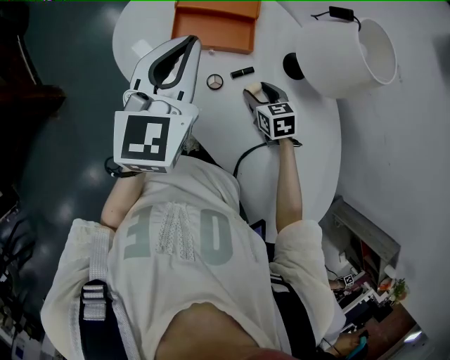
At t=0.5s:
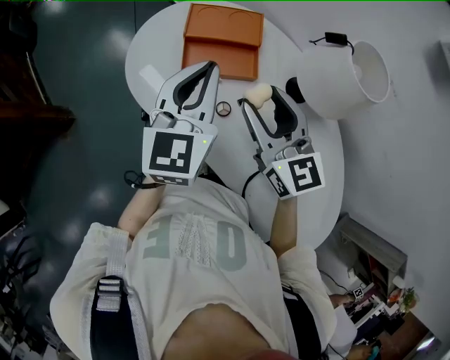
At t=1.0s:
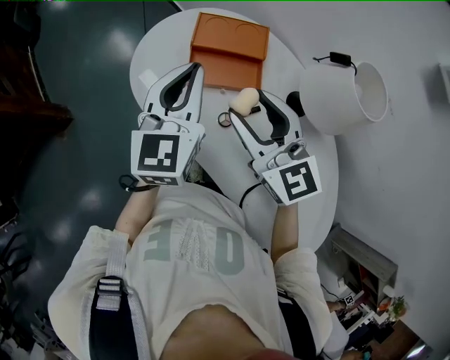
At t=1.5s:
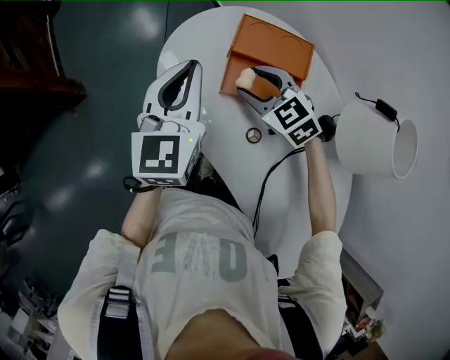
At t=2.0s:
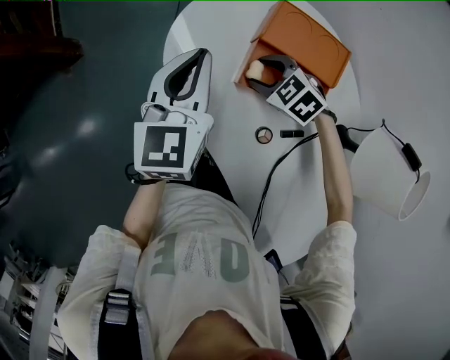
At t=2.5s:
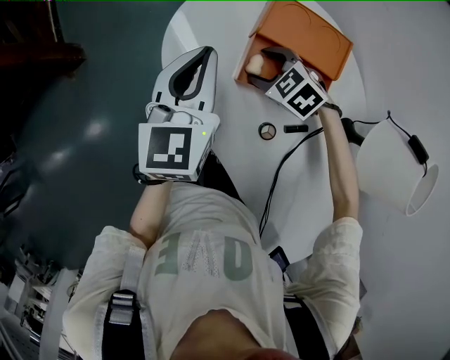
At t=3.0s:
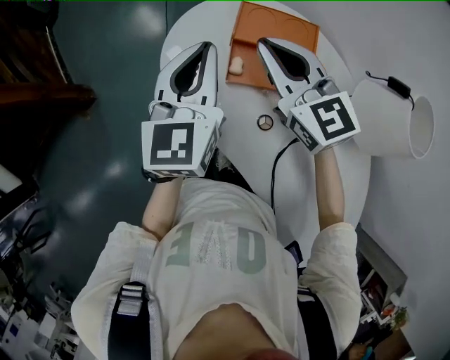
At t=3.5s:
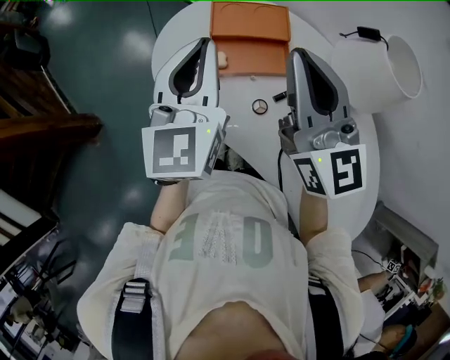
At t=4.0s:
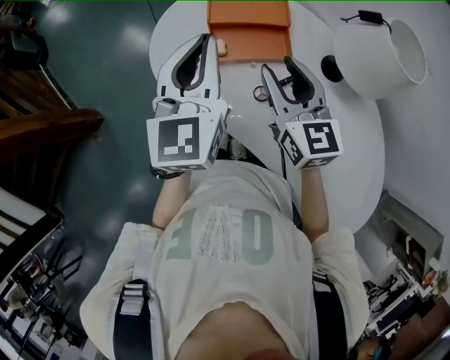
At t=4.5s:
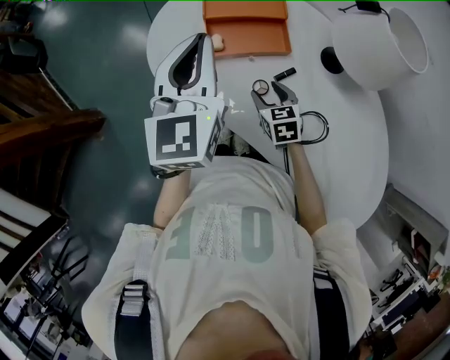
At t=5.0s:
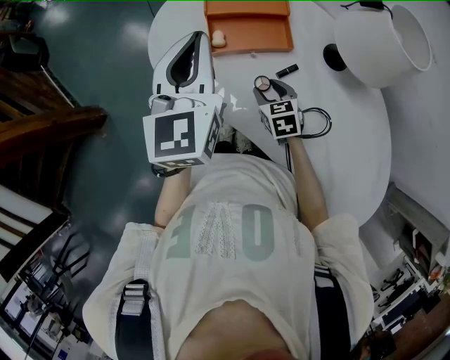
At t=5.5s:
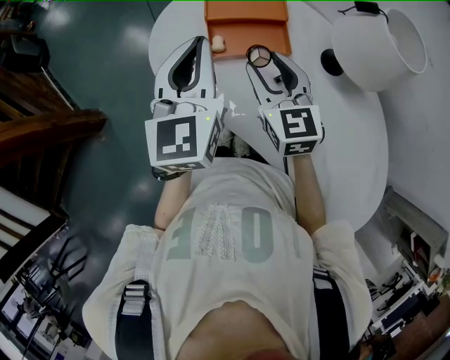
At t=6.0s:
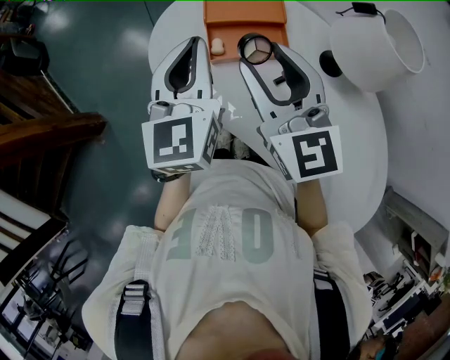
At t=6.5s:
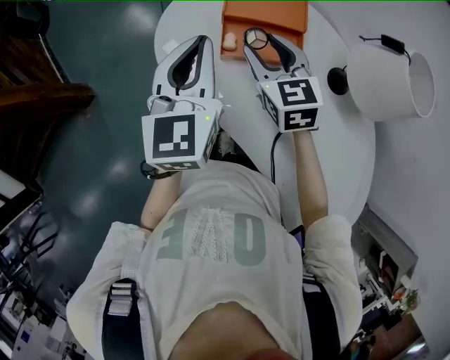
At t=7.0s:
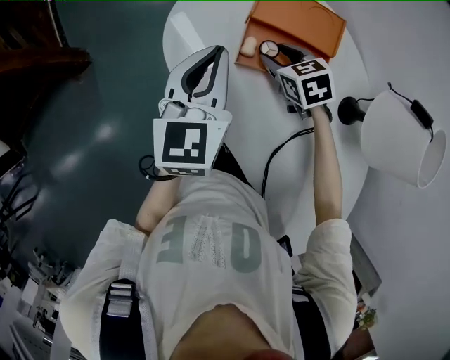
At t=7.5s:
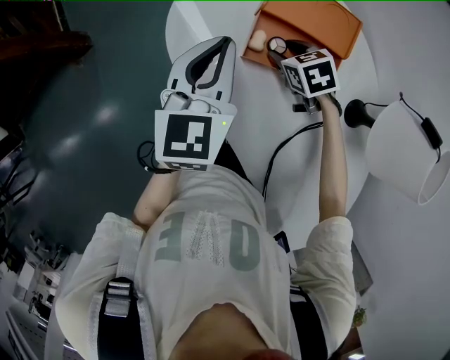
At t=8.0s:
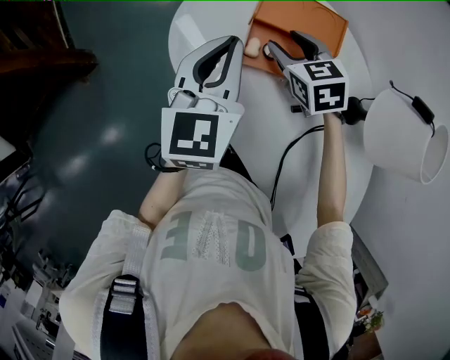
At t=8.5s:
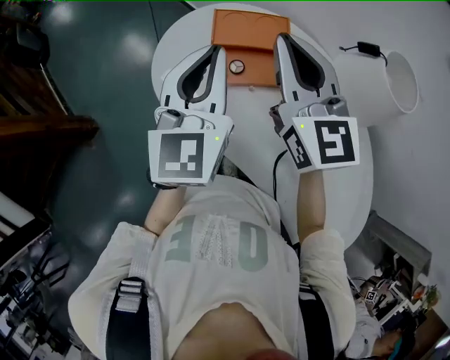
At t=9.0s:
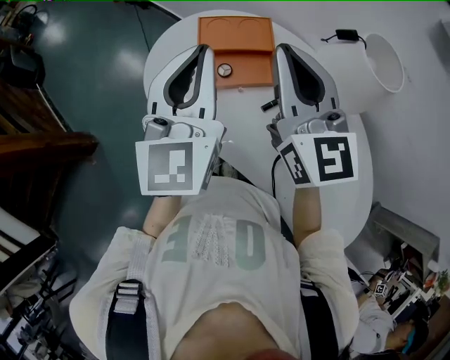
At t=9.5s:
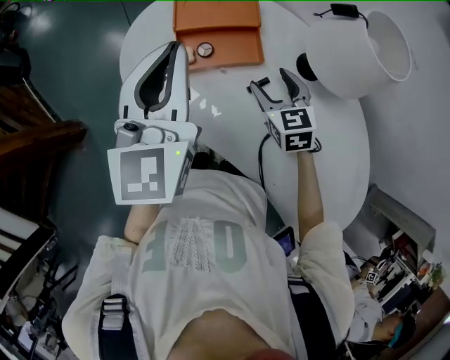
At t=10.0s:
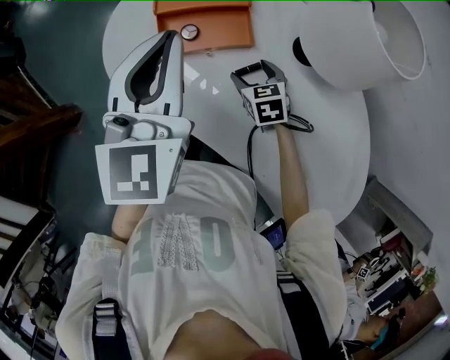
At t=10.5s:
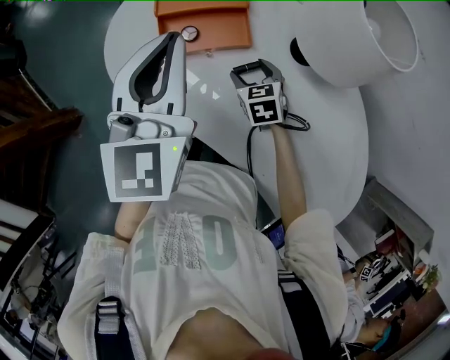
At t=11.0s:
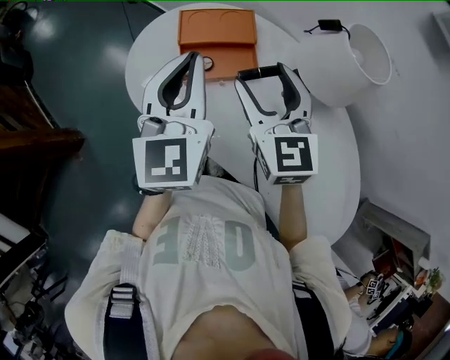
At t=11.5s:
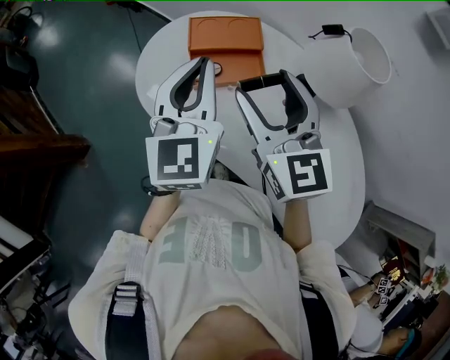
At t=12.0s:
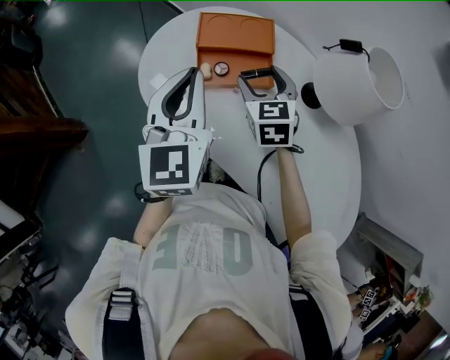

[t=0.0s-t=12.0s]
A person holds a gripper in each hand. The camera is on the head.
t=0.0s to t=2.0s: The right gripper reaches about 30 cm upward, then returns, and rotates around the line of its fingers by roughly 50 degrees, counterclockwise from behind; the left gripper shifts by some 25 cm, and rotates about 20 degrees.
t=2.0s to t=4.0s: The left gripper changes place by approximately 20 cm, and changes its angle by approximately 20 degrees; the right gripper moves upward, roughly 20 cm, points its fingers approximately 50 degrees further upward, and closes, then opens again.
t=4.0s to t=6.0s: The right gripper goes downward and returns, approximately 25 cm each way.
t=6.0s to t=8.0s: The left gripper goes roughly 10 cm downward and forward, while the right gripper travels downward and forward by some 25 cm, and points its fingers about 40 degrees further downward.
t=8.0s to t=10.0s: The left gripper is displaced to the right and upward by roughly 15 cm. Meanwhile the right gripper heads to the right and backward, covering some 20 cm, travels upward and back again, approximately 25 cm each way, turns by roughly 30 degrees, and opens.
t=10.0s to t=12.0s: The left gripper goes roughly 10 cm to the left, while the right gripper moves upward and to the left, roughly 20 cm, and turns by approximately 20 degrees.

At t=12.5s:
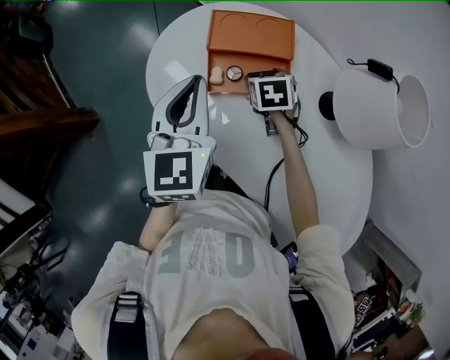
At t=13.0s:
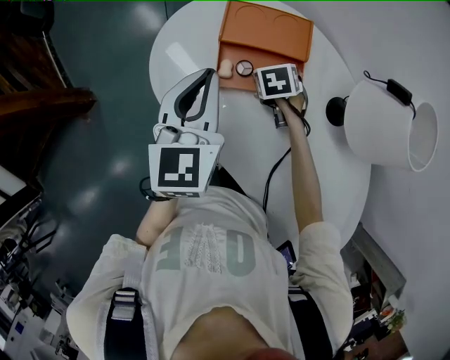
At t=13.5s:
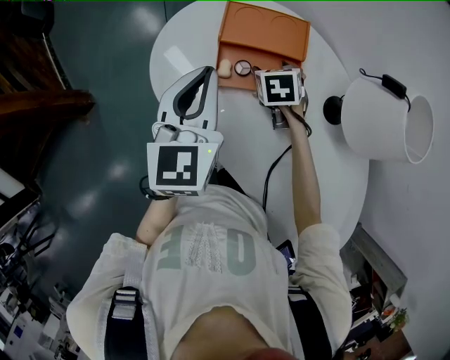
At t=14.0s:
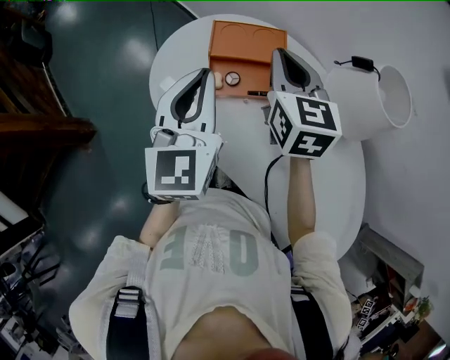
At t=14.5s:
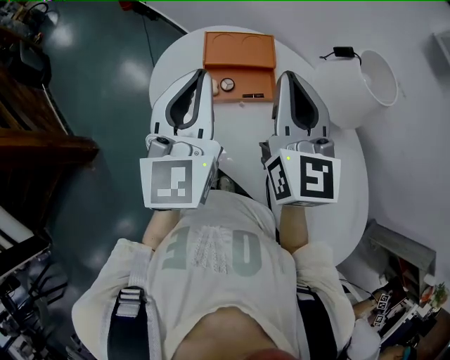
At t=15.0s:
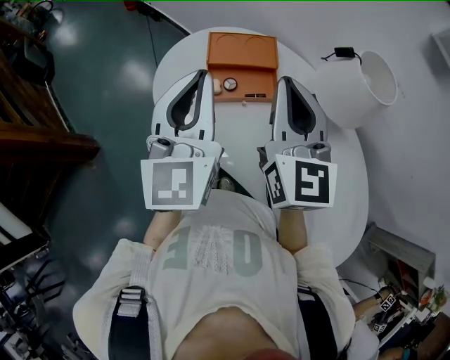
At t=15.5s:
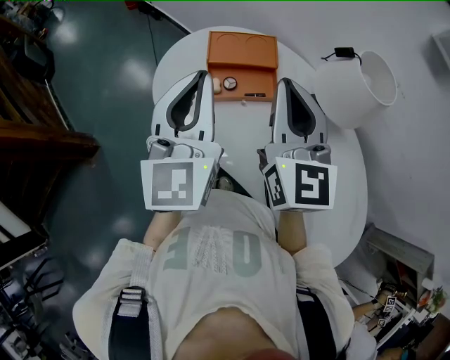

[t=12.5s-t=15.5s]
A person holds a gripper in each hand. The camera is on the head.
t=12.5s to t=14.0s: The left gripper heads upward, covering approximately 5 cm. The right gripper shifts roughly 25 cm upward, points its fingers roughly 40 degrees further upward, and closes up.
t=14.0s to t=15.5s: The right gripper shifts some 15 cm backward and upward. The left gripper shifts roughly 10 cm upward and backward.

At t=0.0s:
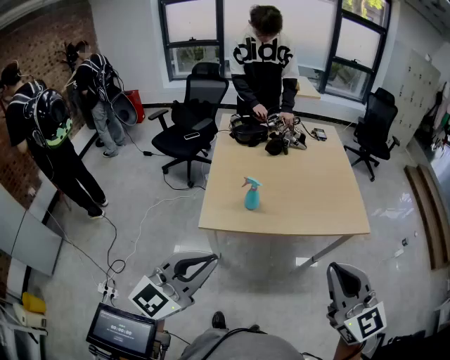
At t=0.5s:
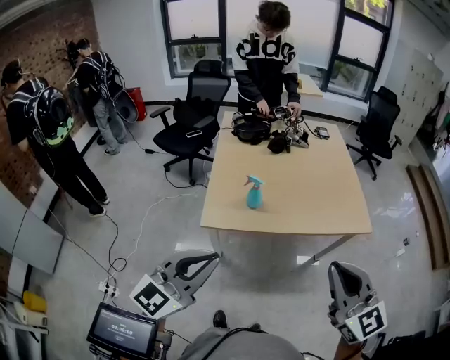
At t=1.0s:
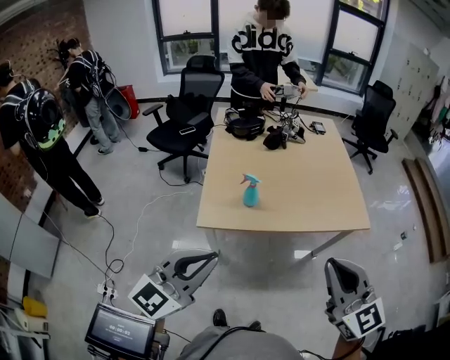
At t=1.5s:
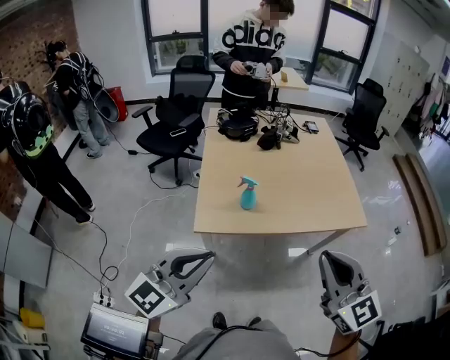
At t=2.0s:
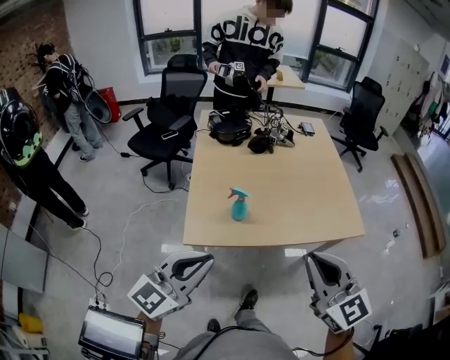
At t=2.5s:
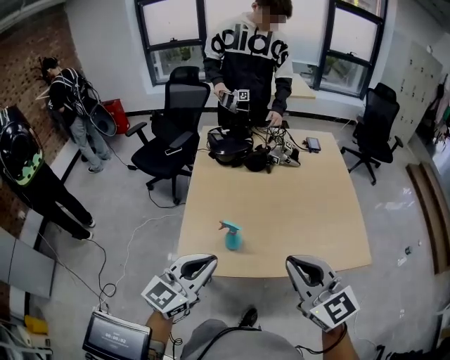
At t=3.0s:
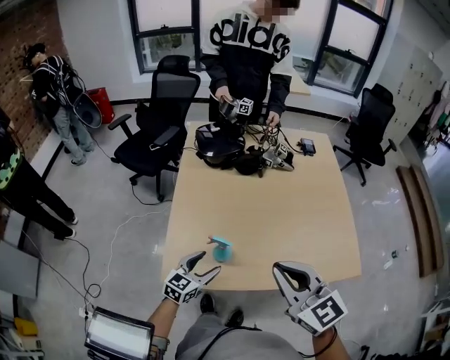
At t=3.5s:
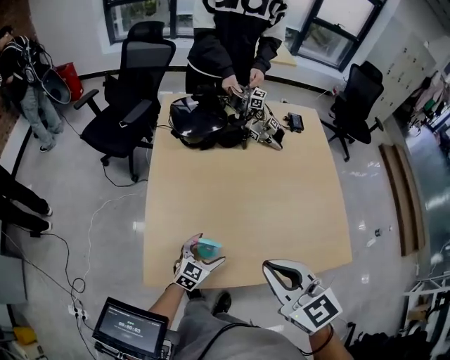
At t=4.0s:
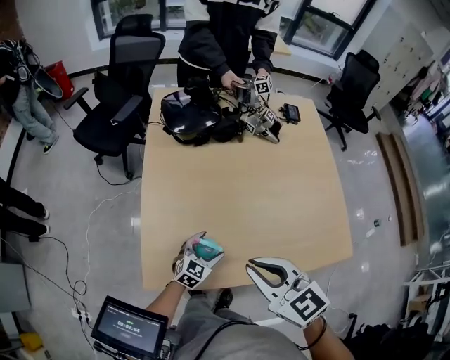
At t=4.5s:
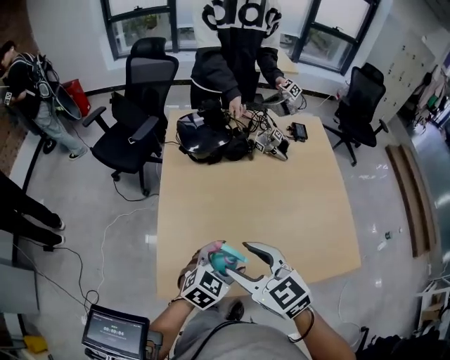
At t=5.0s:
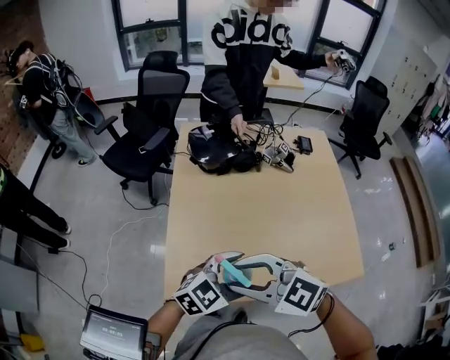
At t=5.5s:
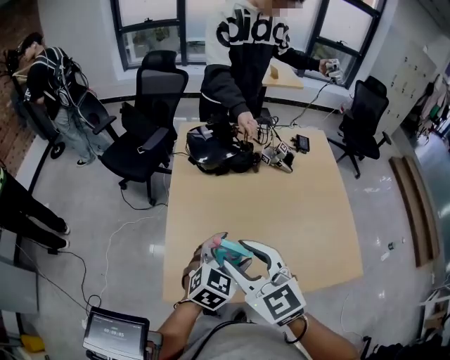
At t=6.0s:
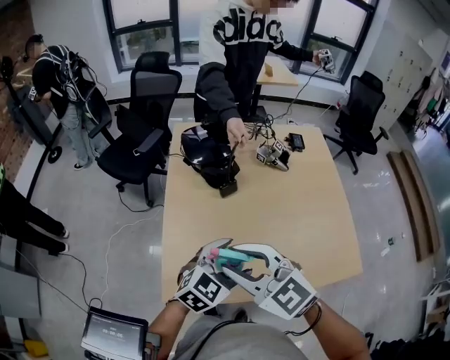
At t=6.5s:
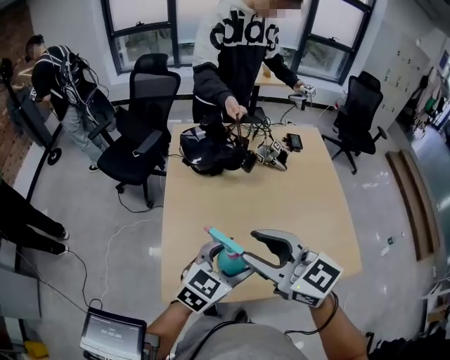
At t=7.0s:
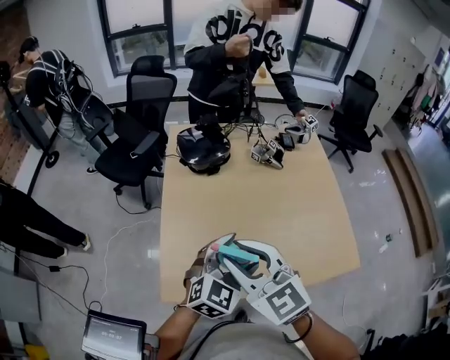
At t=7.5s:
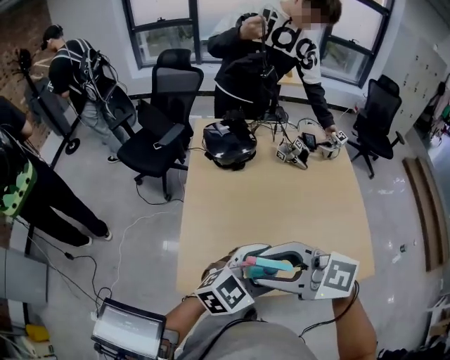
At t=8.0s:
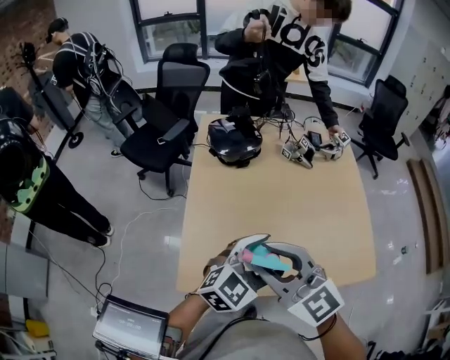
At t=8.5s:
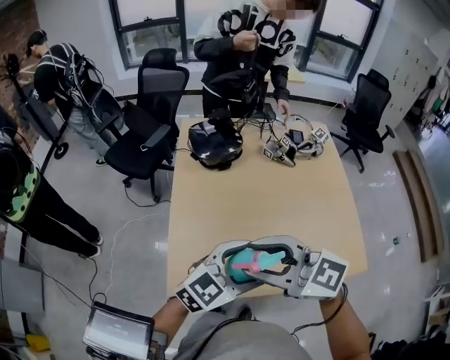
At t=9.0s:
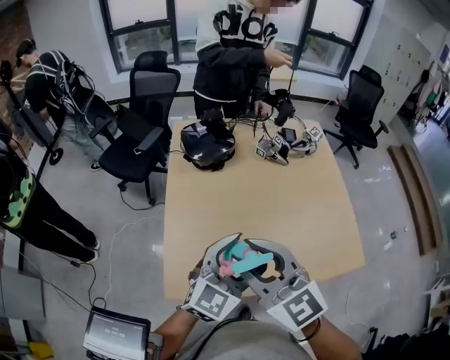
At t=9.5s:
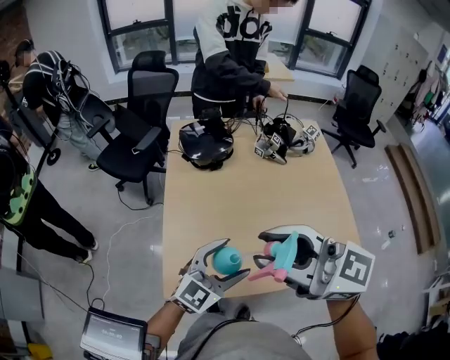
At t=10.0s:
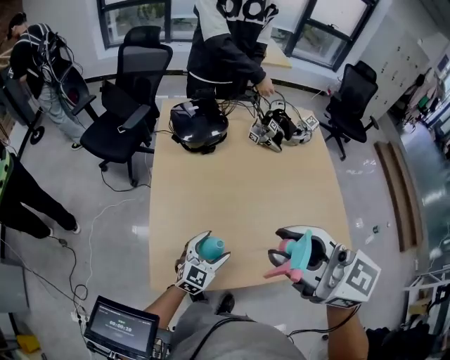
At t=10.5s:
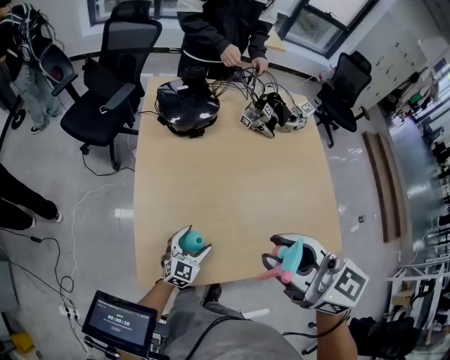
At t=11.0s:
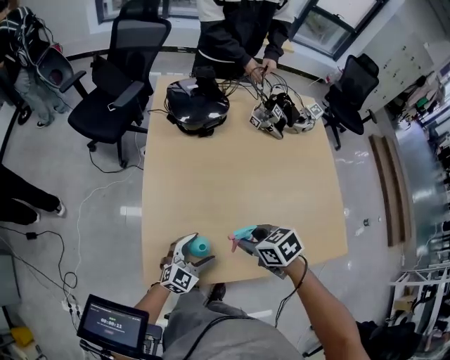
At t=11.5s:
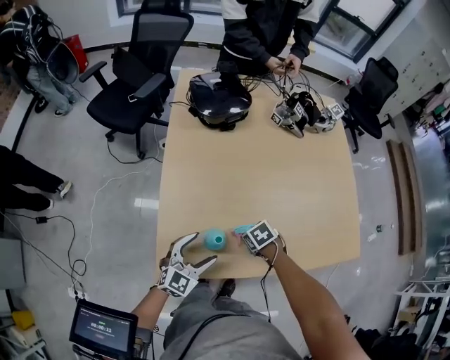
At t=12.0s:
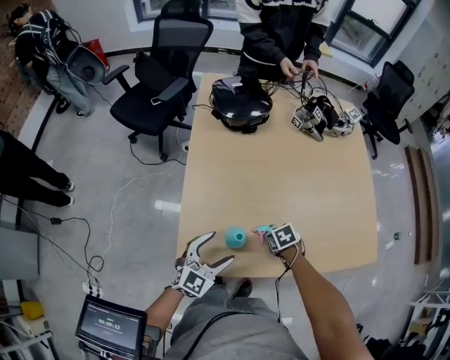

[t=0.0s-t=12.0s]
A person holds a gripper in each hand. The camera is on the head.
t=0.0s to t=2.0s: The right gripper moves forward and to the left, some 15 cm, while the left gripper shifts approximately 10 cm forward.
t=2.0s to t=4.0s: The right gripper moves forward and downward, approximately 30 cm, and rotates approximately 30 degrees; the left gripper is displaced downward and forward by roughly 50 cm, points its fingers about 30 degrees further downward, and opens up.
t=4.0s to t=6.0s: The left gripper travels upward by roughly 25 cm. The right gripper ends up about 10 cm from where it was, swivels about 20 degrees, and opens its fingers.
t=6.0s to t=8.0s: The right gripper turns by about 20 degrees.
t=8.0s to t=10.0s: The left gripper shifts roughly 20 cm downward, while the right gripper is displaced upward by some 5 cm.
t=10.0s to t=12.0s: The right gripper travels downward by roughly 50 cm, and tips its fingers downward by roughly 70 degrees. Meanwhile the left gripper moves about 10 cm downward and comes back.
